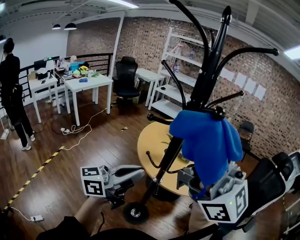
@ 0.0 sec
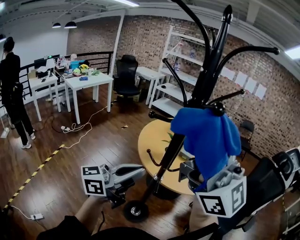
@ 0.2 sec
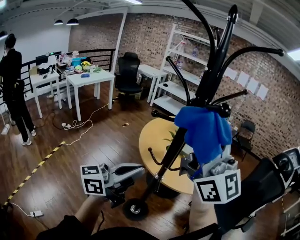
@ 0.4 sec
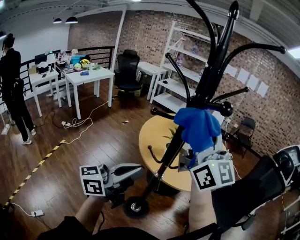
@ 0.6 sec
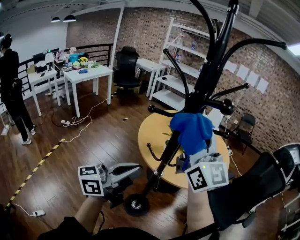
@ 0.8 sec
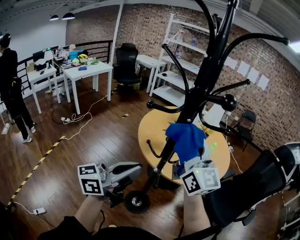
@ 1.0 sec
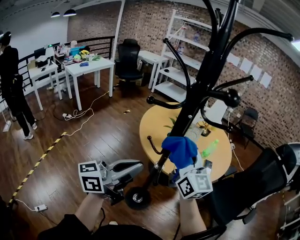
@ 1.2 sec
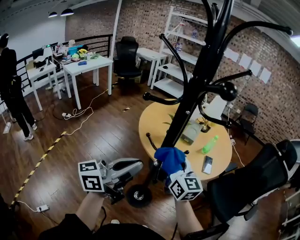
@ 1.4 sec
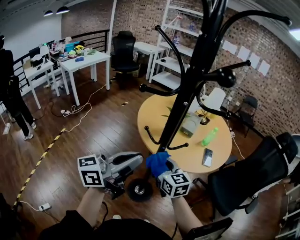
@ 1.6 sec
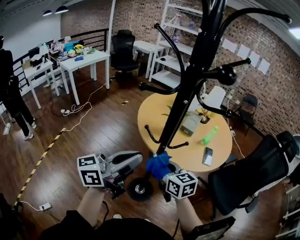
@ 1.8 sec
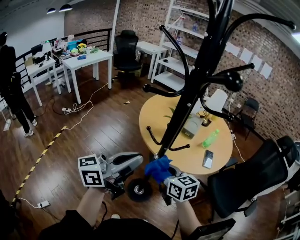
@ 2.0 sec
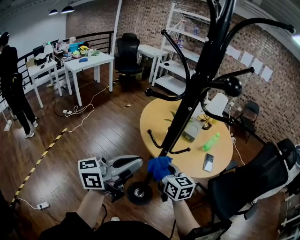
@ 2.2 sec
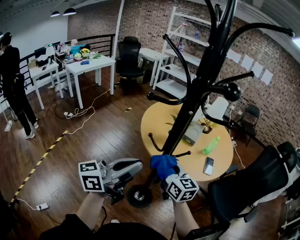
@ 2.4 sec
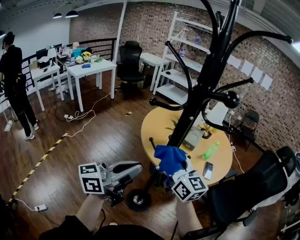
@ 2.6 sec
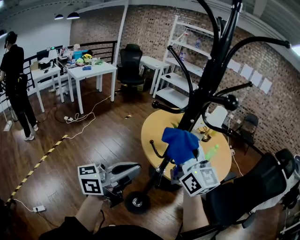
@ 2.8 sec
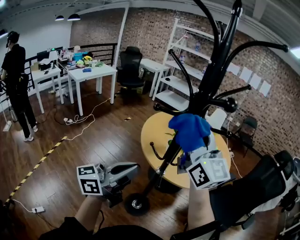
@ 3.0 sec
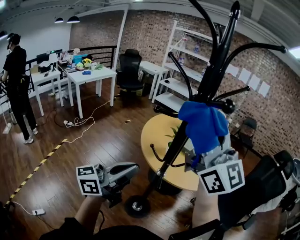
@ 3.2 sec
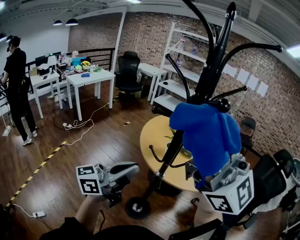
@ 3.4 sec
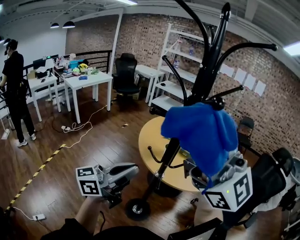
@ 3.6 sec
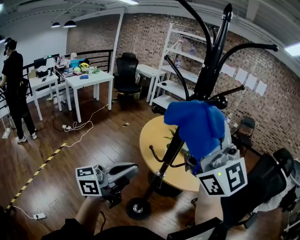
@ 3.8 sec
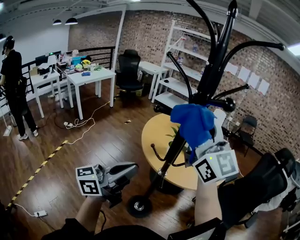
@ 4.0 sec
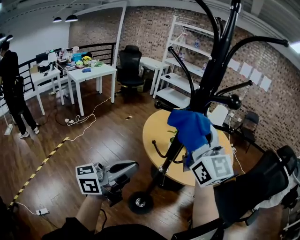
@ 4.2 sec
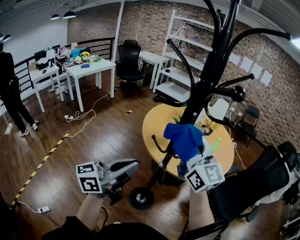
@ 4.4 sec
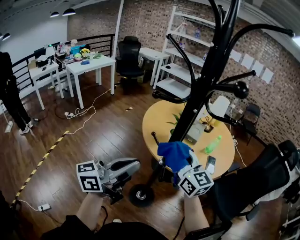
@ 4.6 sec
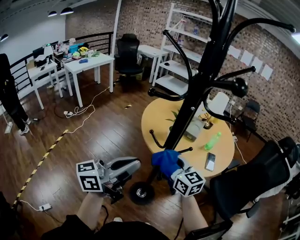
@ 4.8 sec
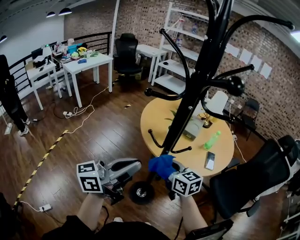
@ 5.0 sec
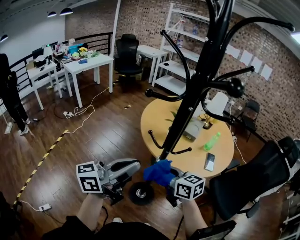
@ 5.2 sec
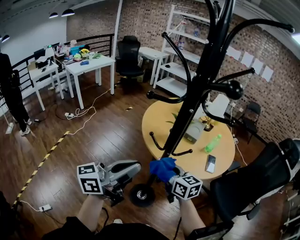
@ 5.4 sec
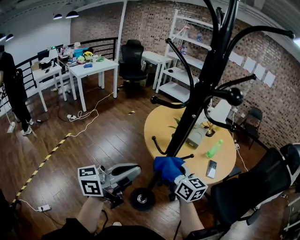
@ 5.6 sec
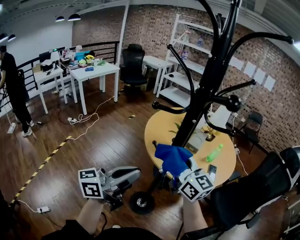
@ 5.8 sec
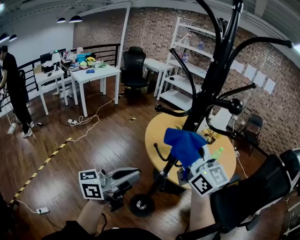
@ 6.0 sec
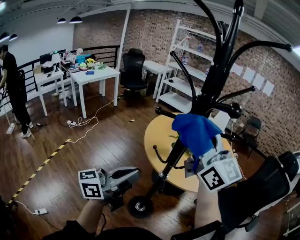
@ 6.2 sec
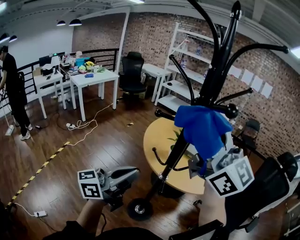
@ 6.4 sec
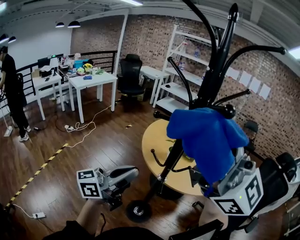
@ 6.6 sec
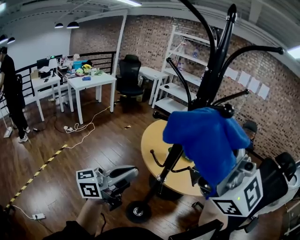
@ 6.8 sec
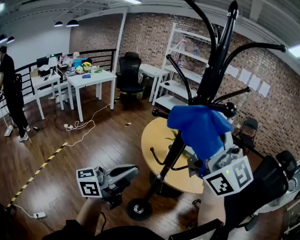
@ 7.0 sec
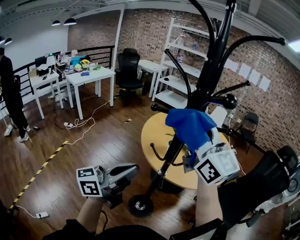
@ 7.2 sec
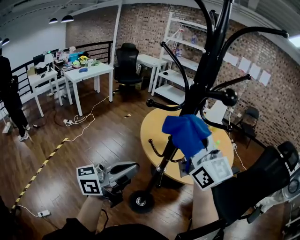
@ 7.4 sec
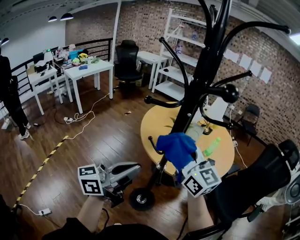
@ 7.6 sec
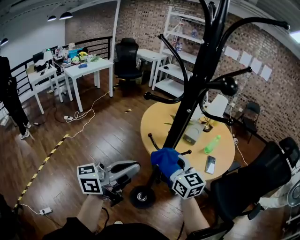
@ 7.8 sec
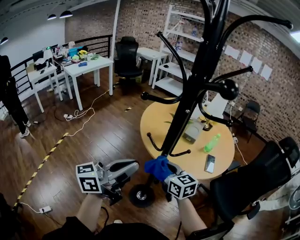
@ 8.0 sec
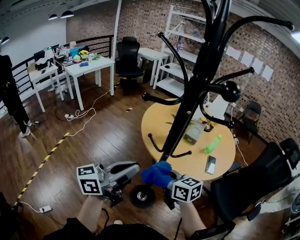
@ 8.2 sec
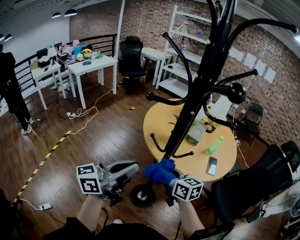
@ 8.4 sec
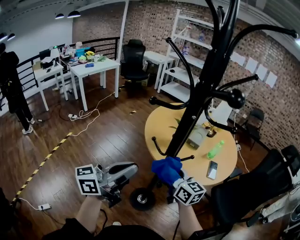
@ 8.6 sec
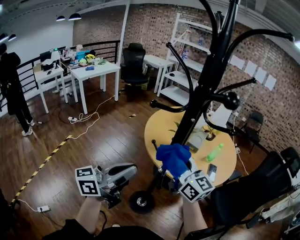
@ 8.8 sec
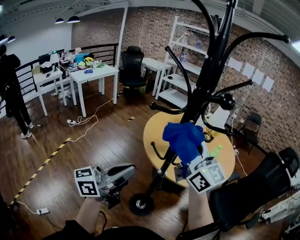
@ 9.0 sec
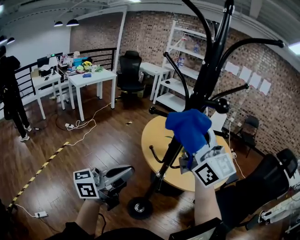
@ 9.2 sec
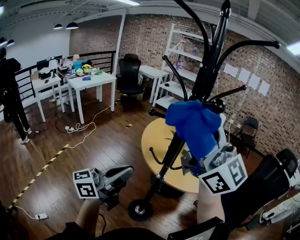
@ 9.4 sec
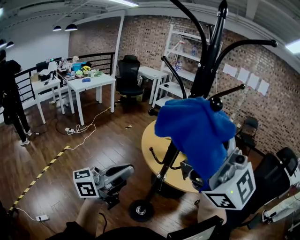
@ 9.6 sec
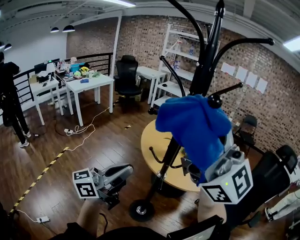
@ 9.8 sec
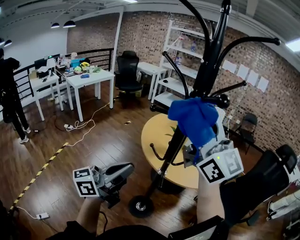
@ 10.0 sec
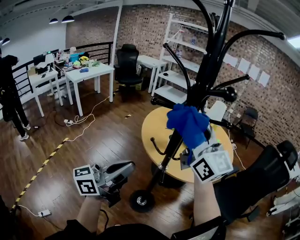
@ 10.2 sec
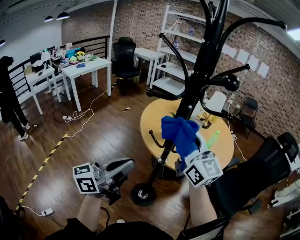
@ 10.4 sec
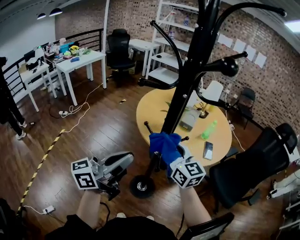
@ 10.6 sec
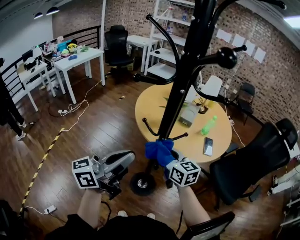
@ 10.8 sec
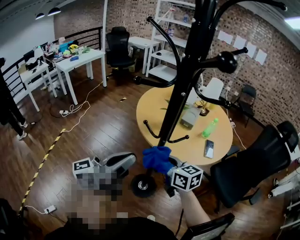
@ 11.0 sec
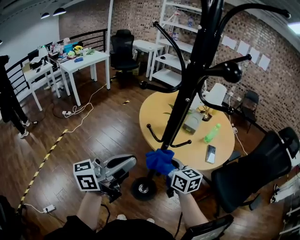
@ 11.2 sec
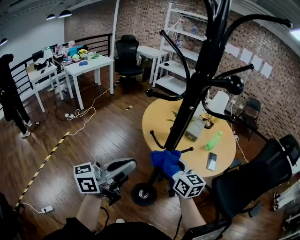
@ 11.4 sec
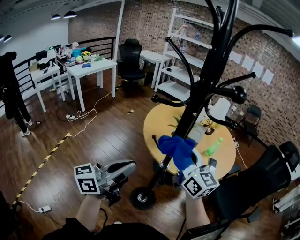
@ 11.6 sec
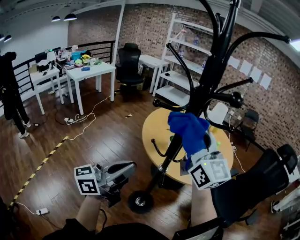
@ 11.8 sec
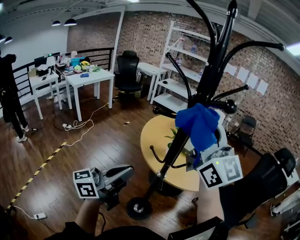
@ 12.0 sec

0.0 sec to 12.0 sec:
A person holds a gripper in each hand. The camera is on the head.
0.0 sec to 1.6 sec: The right gripper is displaced downward by approximately 40 cm, and angles its fingers downward, by approximately 60 degrees.
1.6 sec to 3.0 sec: The right gripper goes approximately 30 cm upward, and tips its fingers upward by approximately 40 degrees.
3.0 sec to 4.4 sec: The right gripper is displaced downward by some 10 cm.
4.4 sec to 6.0 sec: The right gripper moves some 25 cm downward and comes back.
6.0 sec to 7.6 sec: The right gripper travels upward and back again, about 15 cm each way.
7.6 sec to 9.0 sec: The right gripper goes downward and returns, about 20 cm each way.
9.0 sec to 10.4 sec: The right gripper reaches roughly 15 cm upward, then returns.
10.4 sec to 12.0 sec: The right gripper goes approximately 15 cm upward.

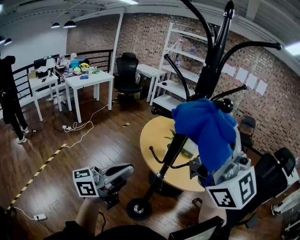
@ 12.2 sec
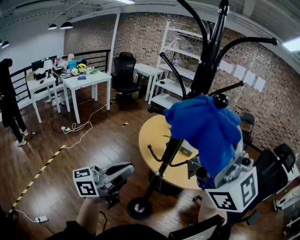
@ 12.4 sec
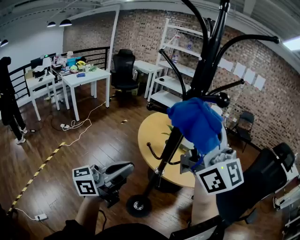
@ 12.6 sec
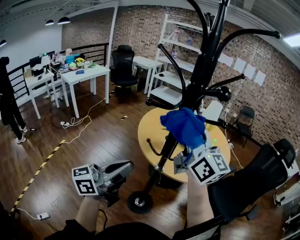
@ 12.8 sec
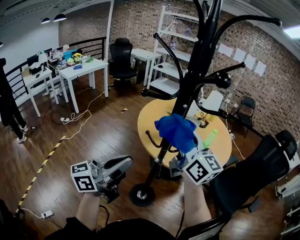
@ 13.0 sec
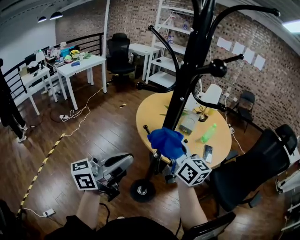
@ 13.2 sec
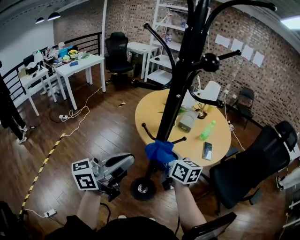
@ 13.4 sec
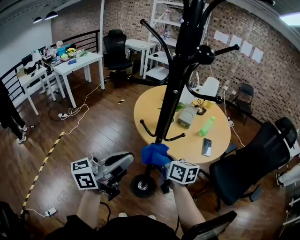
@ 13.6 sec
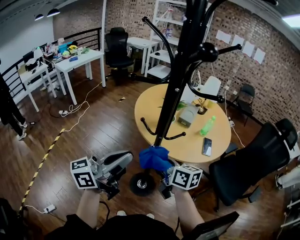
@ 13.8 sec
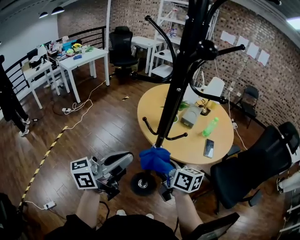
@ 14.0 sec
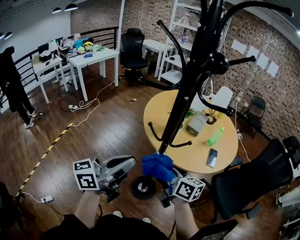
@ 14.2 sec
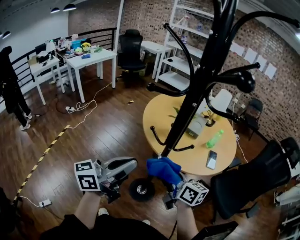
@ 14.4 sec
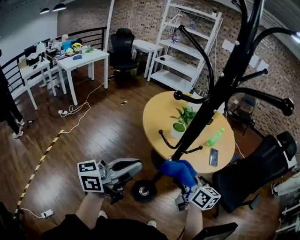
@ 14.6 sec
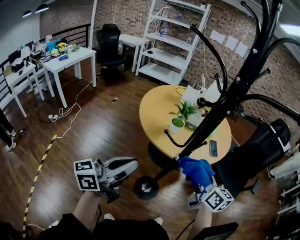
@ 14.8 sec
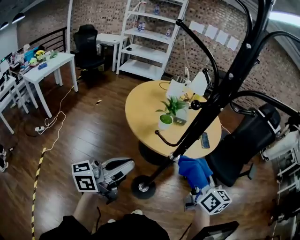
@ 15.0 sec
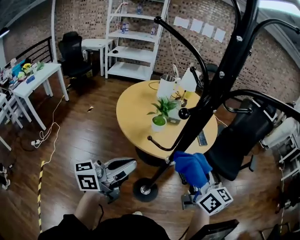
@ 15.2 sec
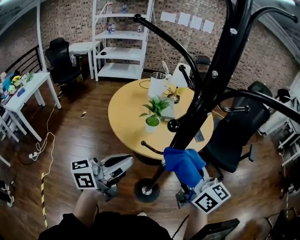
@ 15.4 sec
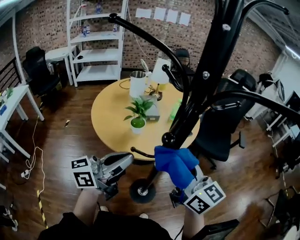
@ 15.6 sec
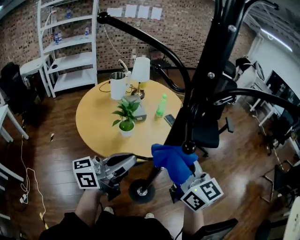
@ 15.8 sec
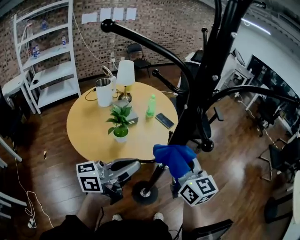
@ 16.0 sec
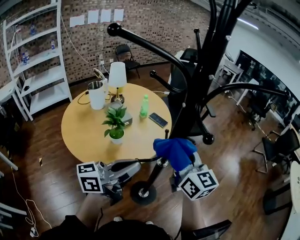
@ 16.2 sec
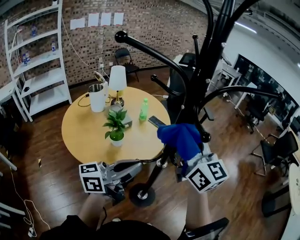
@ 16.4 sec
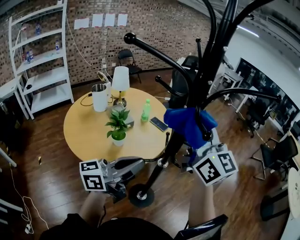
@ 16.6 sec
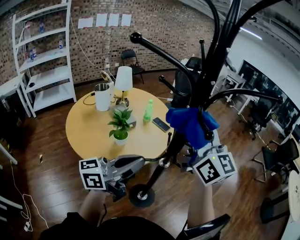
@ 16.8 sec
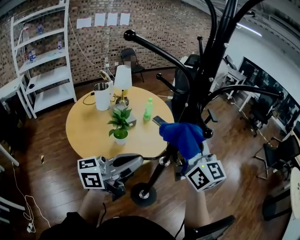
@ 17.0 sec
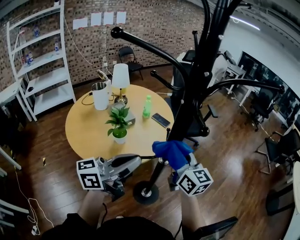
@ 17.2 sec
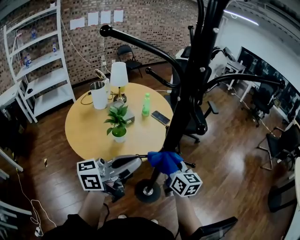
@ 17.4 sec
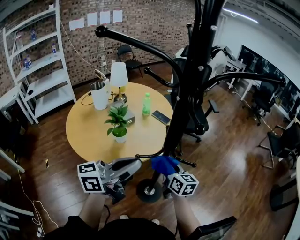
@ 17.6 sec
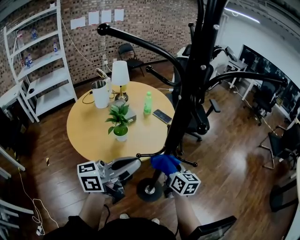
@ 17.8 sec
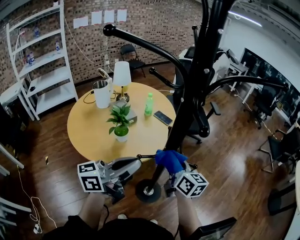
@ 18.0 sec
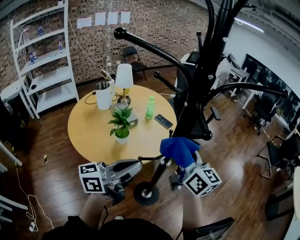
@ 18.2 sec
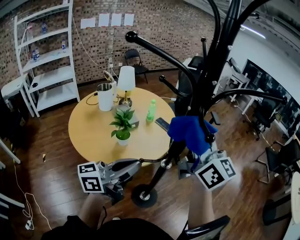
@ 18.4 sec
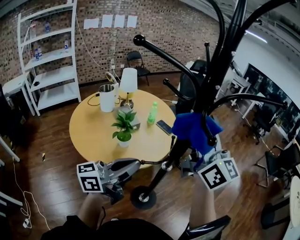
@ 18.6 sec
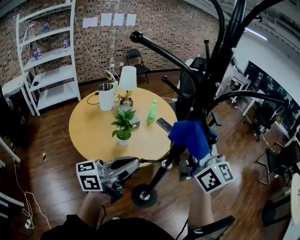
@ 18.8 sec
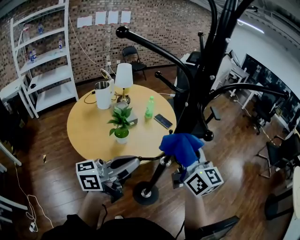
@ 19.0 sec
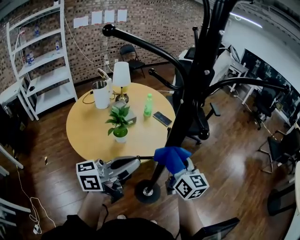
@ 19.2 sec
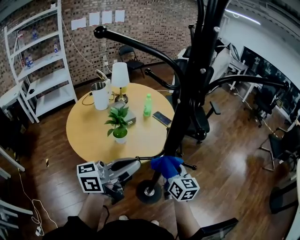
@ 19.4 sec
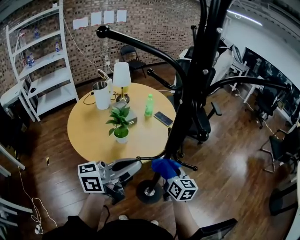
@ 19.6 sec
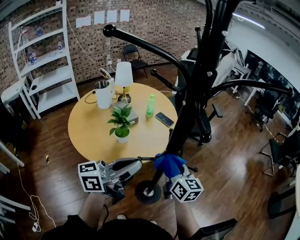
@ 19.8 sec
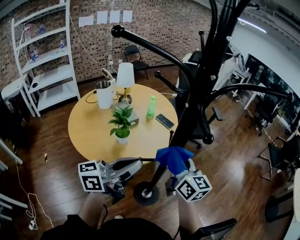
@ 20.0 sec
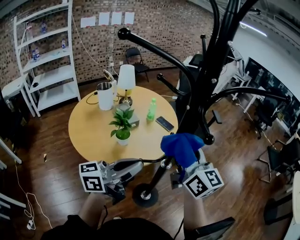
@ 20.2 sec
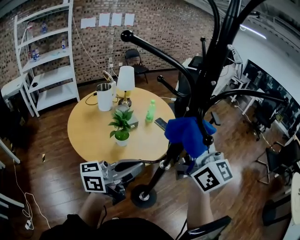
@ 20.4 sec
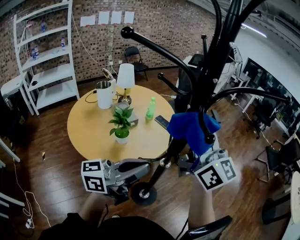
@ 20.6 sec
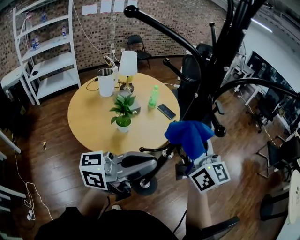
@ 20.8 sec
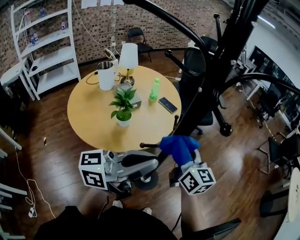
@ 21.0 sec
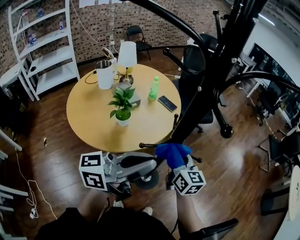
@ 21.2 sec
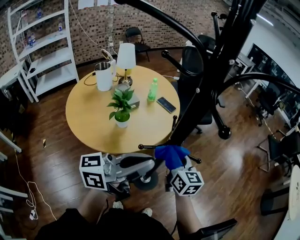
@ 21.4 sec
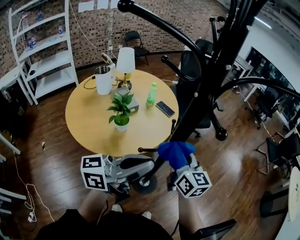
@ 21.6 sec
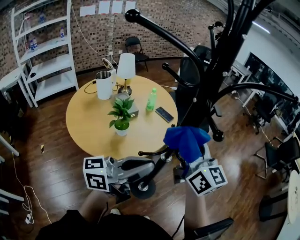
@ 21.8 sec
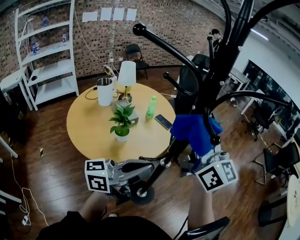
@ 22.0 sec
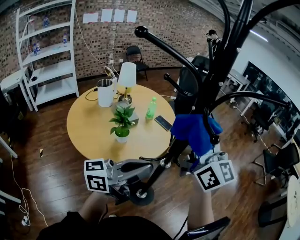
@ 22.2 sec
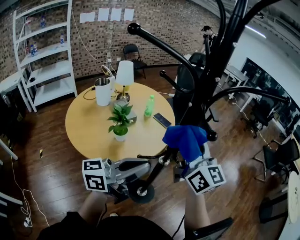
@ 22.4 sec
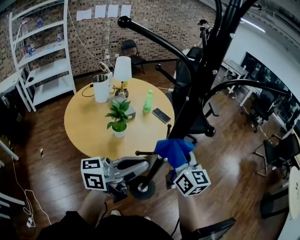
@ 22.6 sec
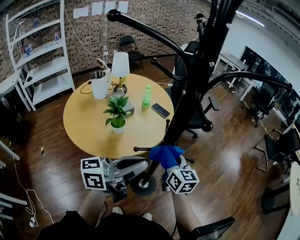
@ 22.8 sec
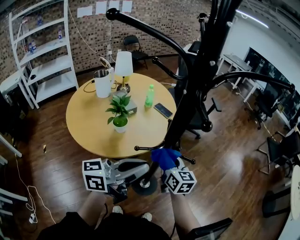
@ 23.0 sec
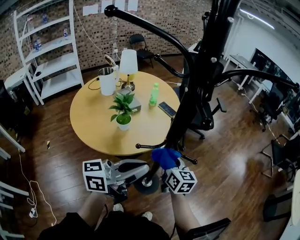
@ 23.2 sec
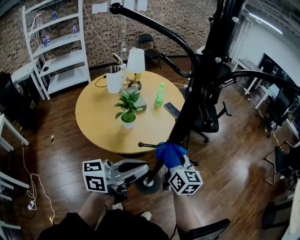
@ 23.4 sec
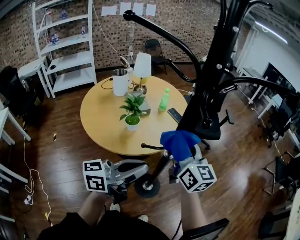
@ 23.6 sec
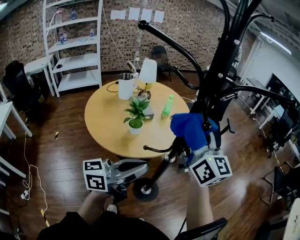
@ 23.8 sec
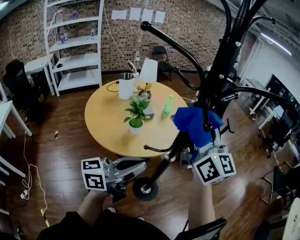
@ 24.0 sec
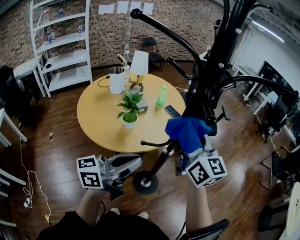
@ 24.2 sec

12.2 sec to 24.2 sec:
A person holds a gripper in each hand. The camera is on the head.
12.2 sec to 13.8 sec: The left gripper changes place by some 5 cm; the right gripper heads downward, covering about 40 cm, and angles its fingers downward, by some 50 degrees.
13.8 sec to 15.2 sec: The left gripper ends up about 15 cm from where it was, and rotates approximately 30 degrees; the right gripper goes roughly 10 cm upward, and swivels approximately 50 degrees.
15.2 sec to 16.6 sec: The right gripper is displaced upward by approximately 15 cm, and changes its angle by about 50 degrees. Meanwhile the left gripper moves approximately 10 cm, and changes its angle by roughly 50 degrees.
16.6 sec to 18.2 sec: The right gripper is displaced downward by some 15 cm, and rotates some 20 degrees.
18.2 sec to 19.8 sec: The right gripper swings up and down, approximately 35 cm each way, with 2 reversals.
19.8 sec to 21.2 sec: The right gripper reaches about 25 cm upward, then returns. Meanwhile the left gripper shifts by roughly 5 cm.
21.2 sec to 22.6 sec: The right gripper moves upward, roughly 10 cm.
22.6 sec to 24.2 sec: The right gripper moves up and down over roughly 30 cm, changing direction 2 times.
